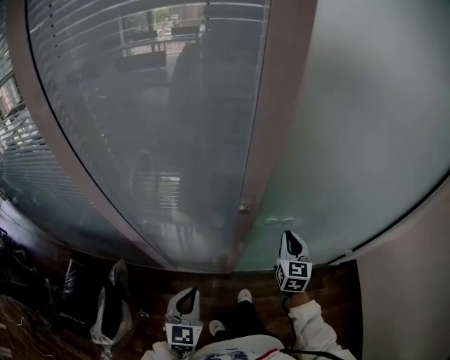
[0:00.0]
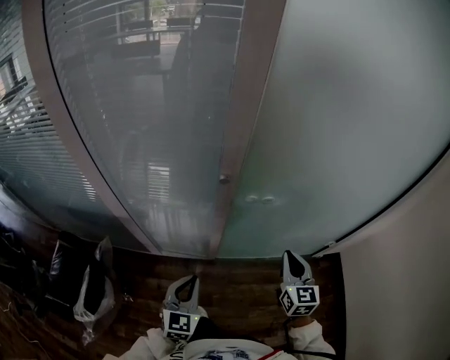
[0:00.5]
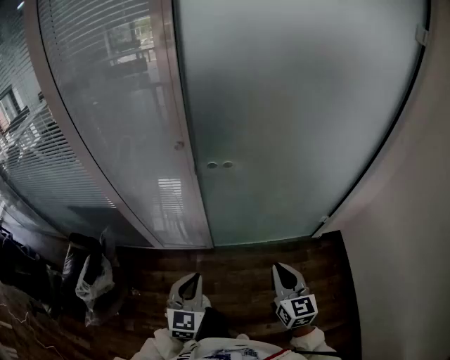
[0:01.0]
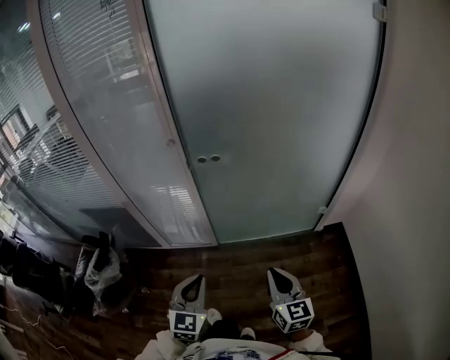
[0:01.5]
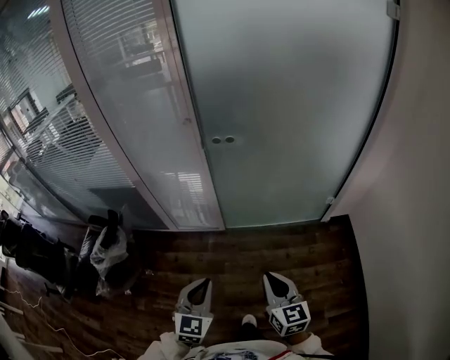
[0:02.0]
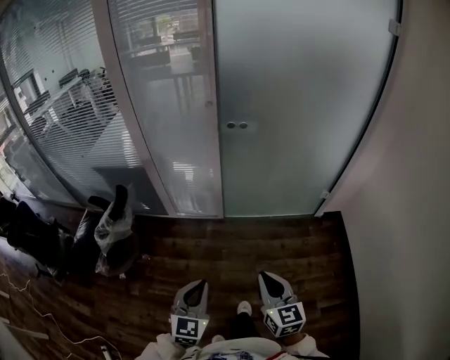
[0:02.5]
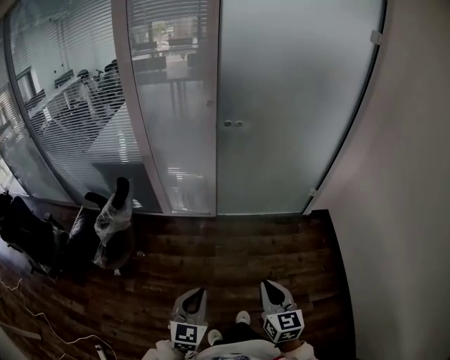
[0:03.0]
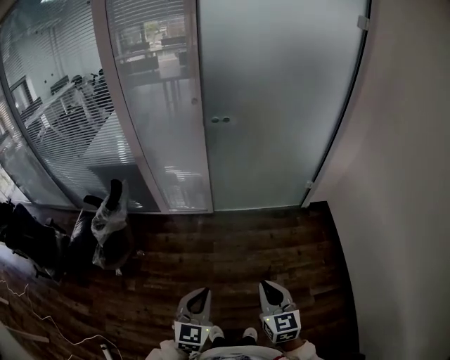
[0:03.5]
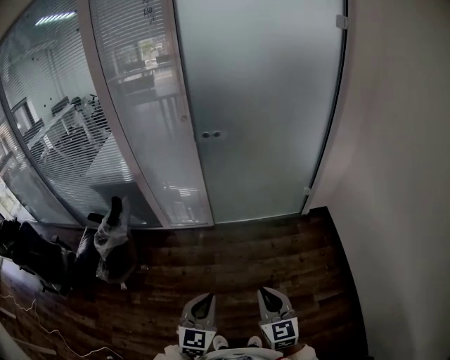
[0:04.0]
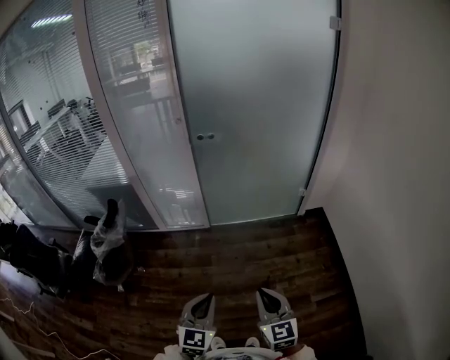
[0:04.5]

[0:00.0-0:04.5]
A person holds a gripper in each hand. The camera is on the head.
0:00.0 to 0:02.0: Both grippers are carried backward and to the right, some 50 cm. The right gripper turns by approximately 20 degrees.
0:02.0 to 0:04.5: The two grippers go roughly 25 cm backward.

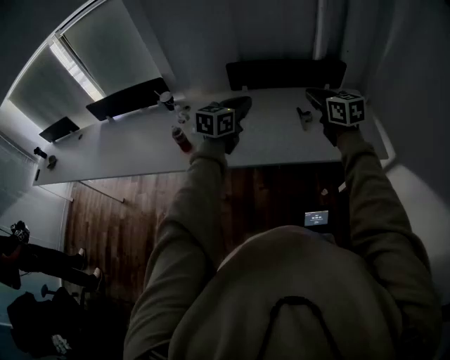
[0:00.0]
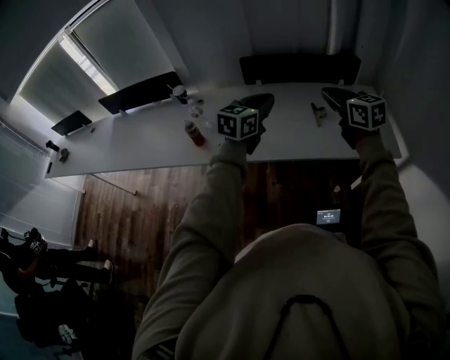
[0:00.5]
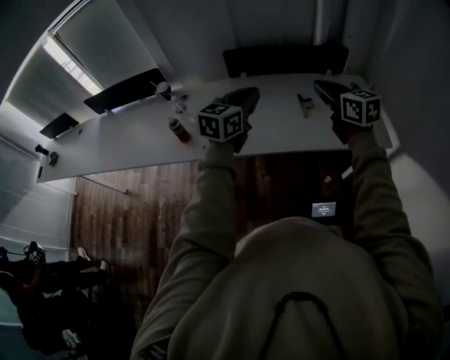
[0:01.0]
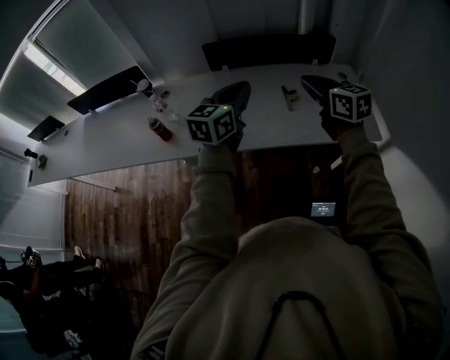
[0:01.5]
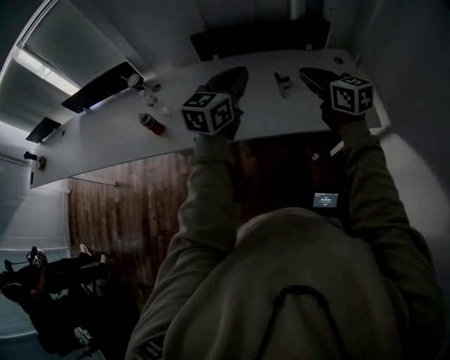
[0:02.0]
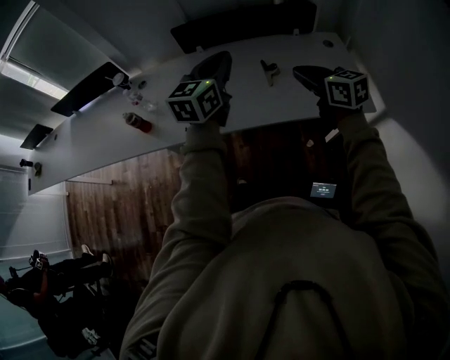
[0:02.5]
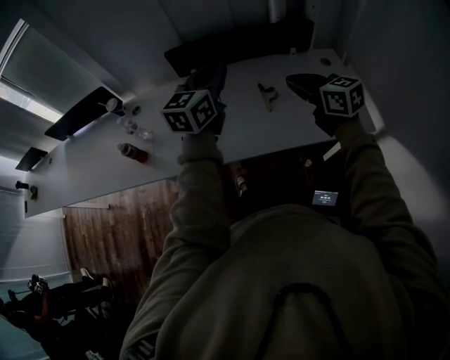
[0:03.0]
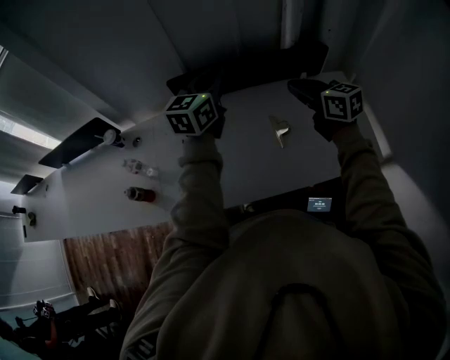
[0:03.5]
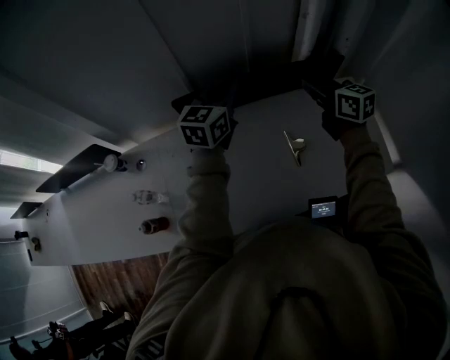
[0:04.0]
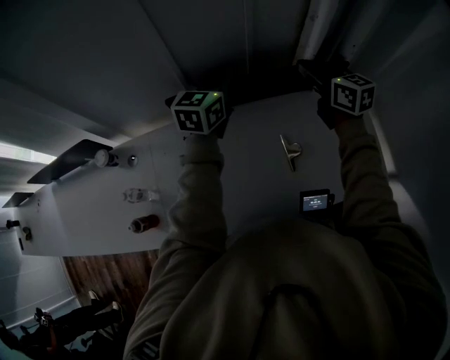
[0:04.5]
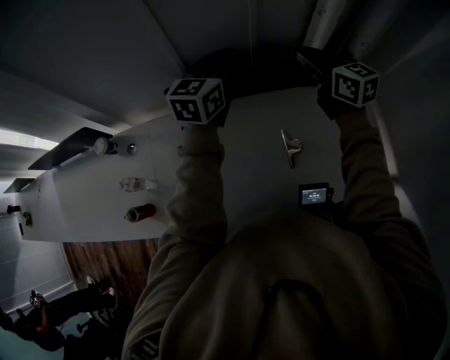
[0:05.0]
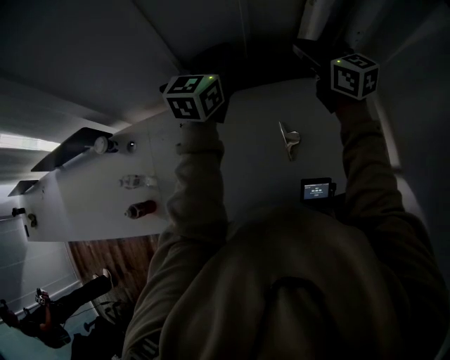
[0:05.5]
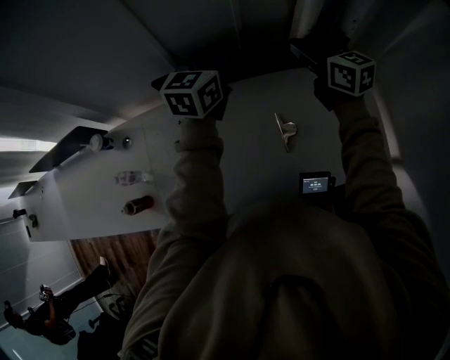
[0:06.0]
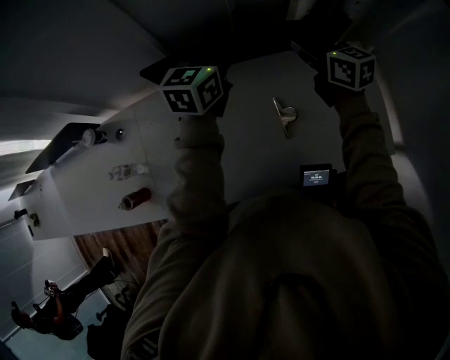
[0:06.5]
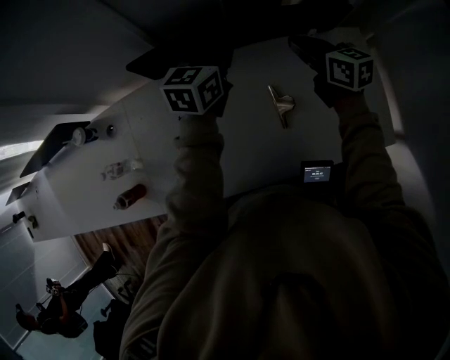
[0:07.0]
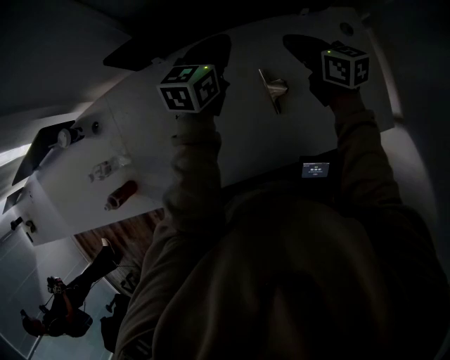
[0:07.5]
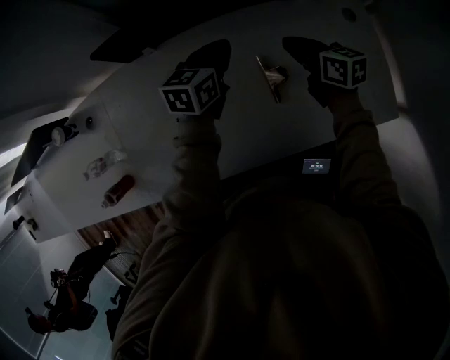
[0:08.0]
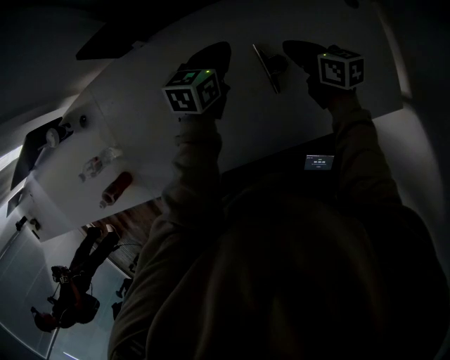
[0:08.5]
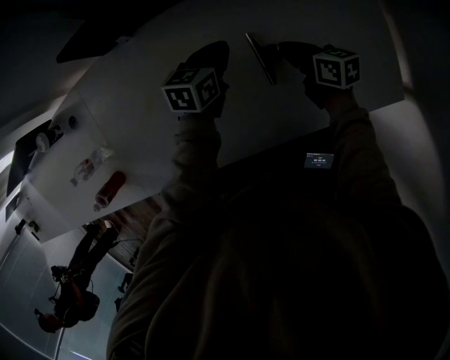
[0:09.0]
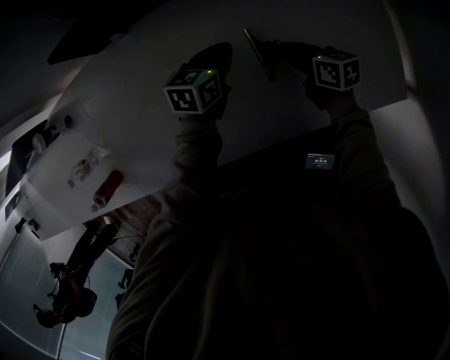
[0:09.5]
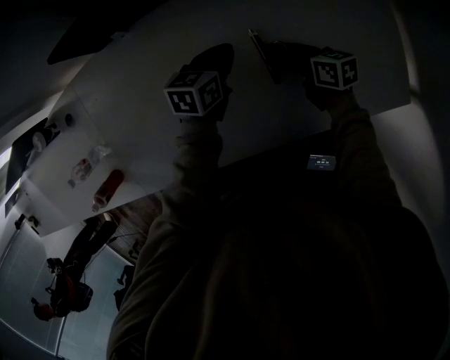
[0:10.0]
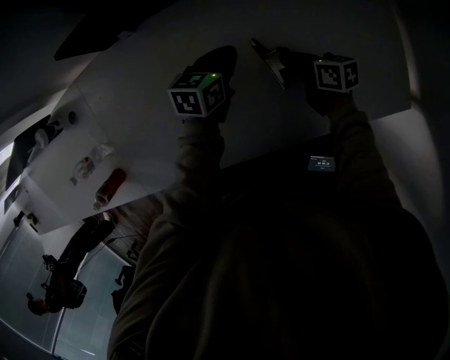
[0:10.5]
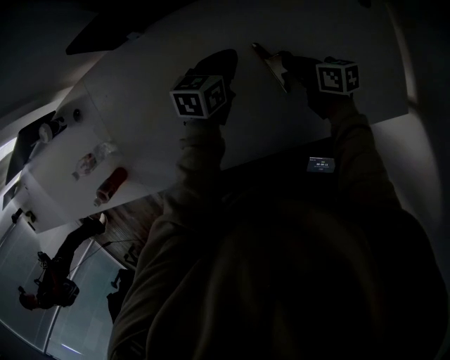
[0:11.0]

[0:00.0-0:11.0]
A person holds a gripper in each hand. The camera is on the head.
0:00.0 to 0:02.0: The two grippers go some 10 cm to the right.
0:02.0 to 0:03.5: Both grippers move forward, some 30 cm.
0:03.5 to 0:05.5: The two grippers go roughly 20 cm forward.
0:05.5 to 0:07.5: The two grippers go roughly 20 cm downward. The left gripper rotates about 20 degrees; the right gripper rotates about 20 degrees.
0:07.5 to 0:09.0: The right gripper goes approximately 20 cm downward and backward; the left gripper goes about 20 cm downward.
0:09.0 to 0:11.0: The right gripper opens, then closes again.

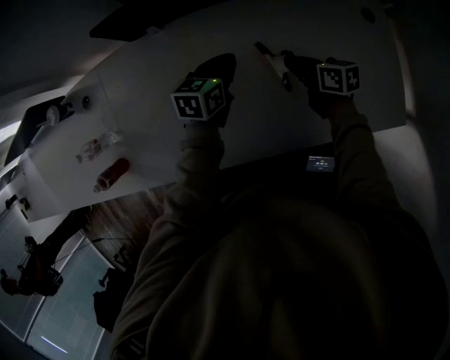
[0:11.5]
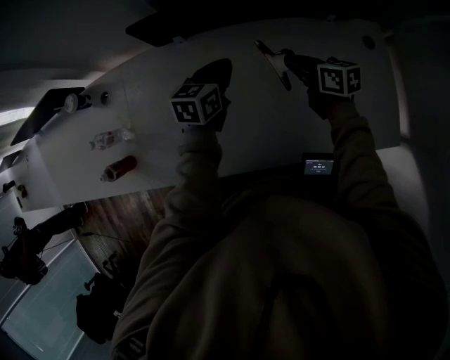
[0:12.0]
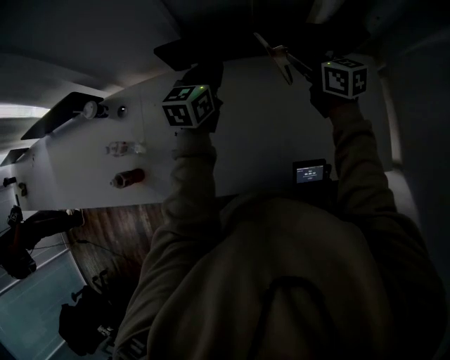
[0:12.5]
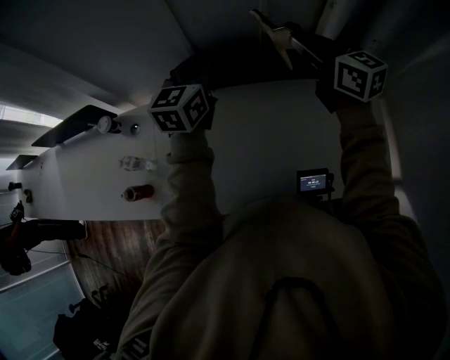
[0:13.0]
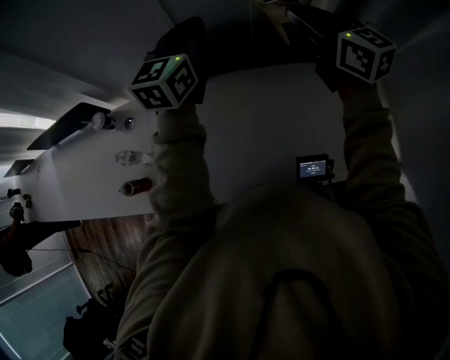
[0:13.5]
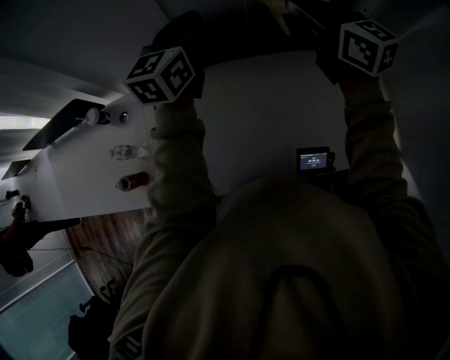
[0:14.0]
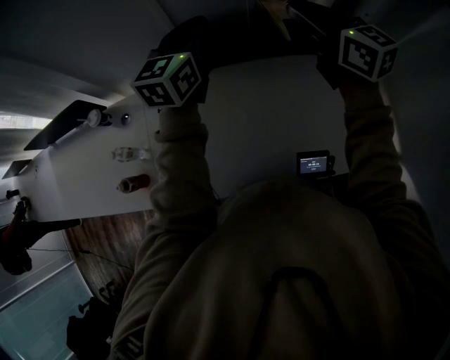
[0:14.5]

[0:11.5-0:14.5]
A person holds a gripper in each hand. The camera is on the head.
0:11.5 to 0:13.0: The two grippers go about 35 cm upward. The right gripper swivels approximately 50 degrees; the left gripper swivels about 40 degrees.
0:13.0 to 0:14.5: The grippers make only small movements.

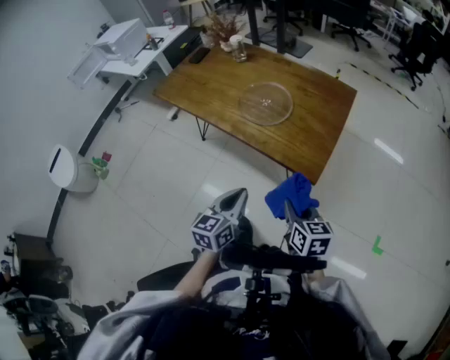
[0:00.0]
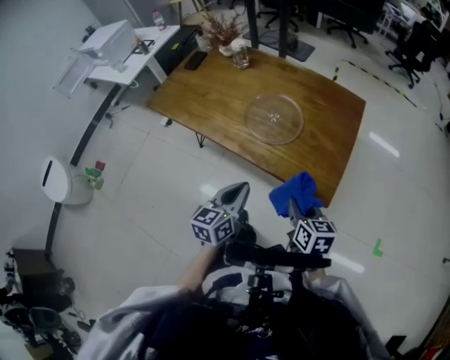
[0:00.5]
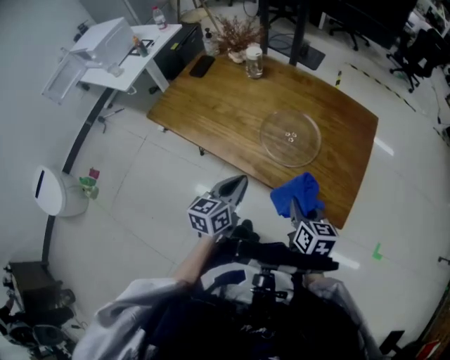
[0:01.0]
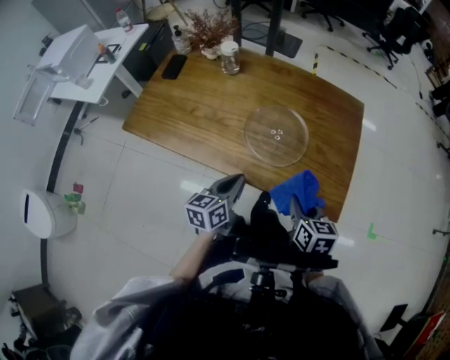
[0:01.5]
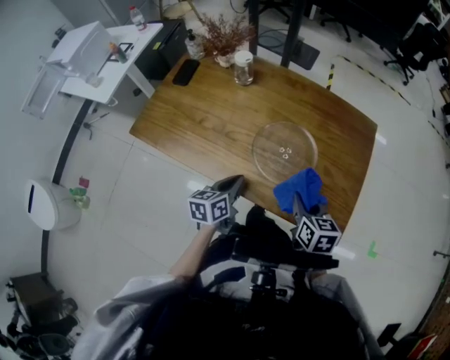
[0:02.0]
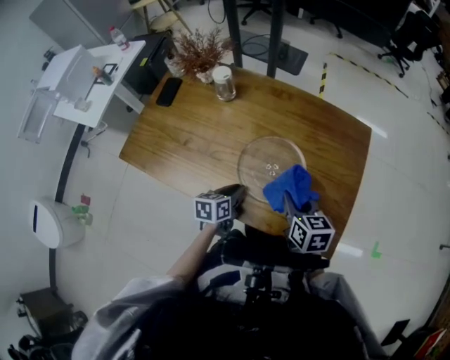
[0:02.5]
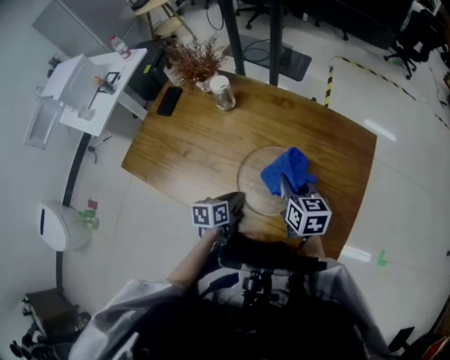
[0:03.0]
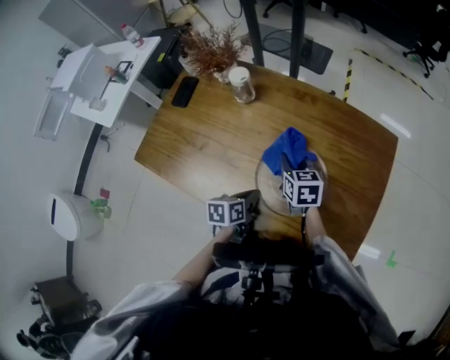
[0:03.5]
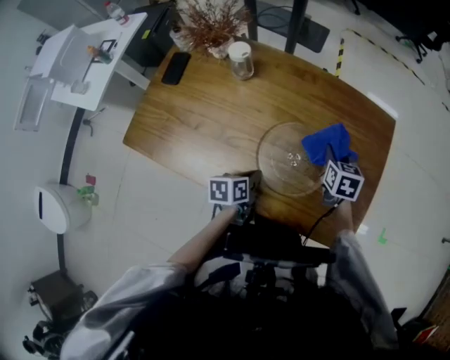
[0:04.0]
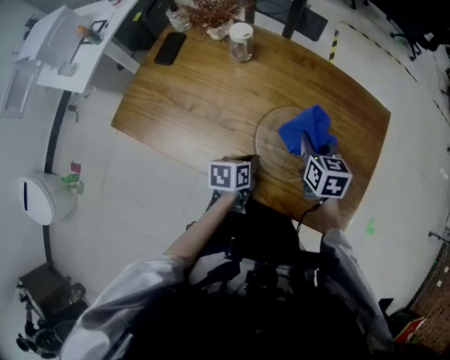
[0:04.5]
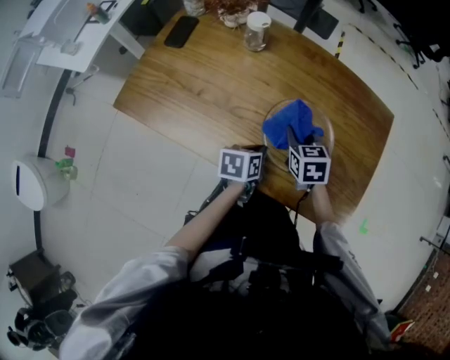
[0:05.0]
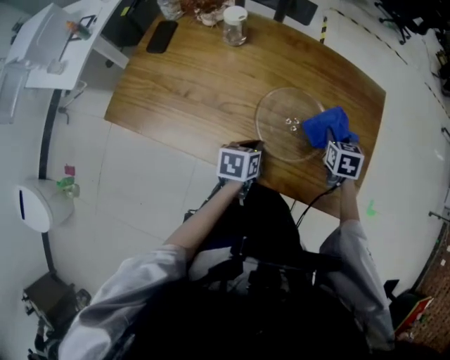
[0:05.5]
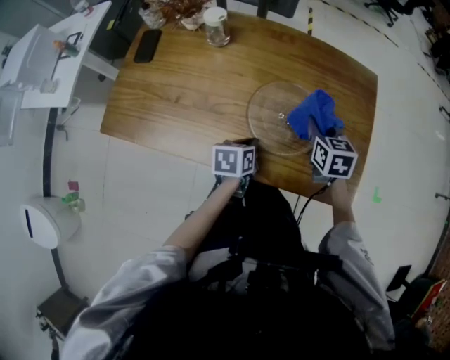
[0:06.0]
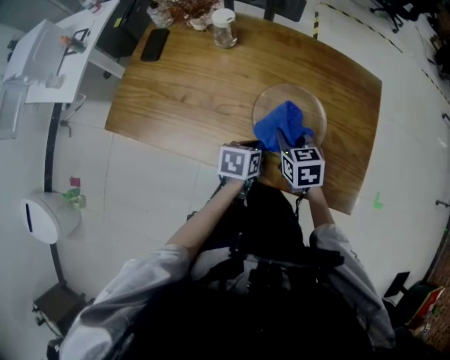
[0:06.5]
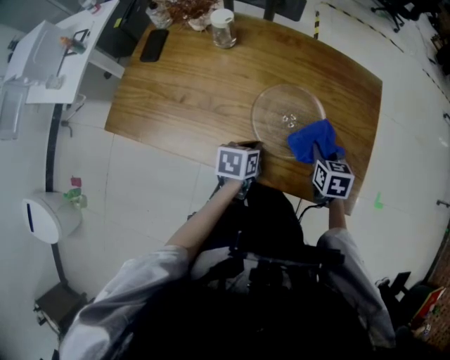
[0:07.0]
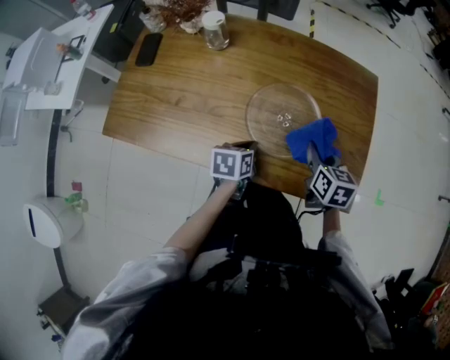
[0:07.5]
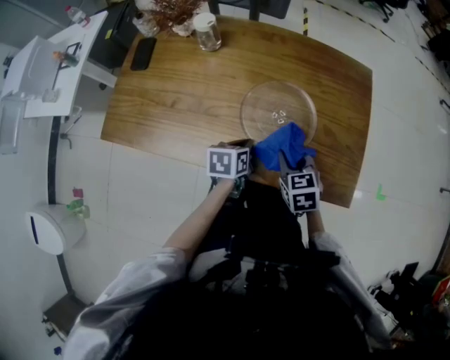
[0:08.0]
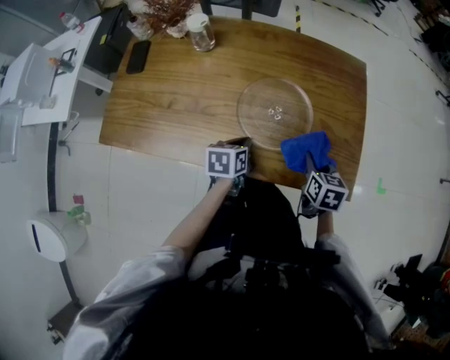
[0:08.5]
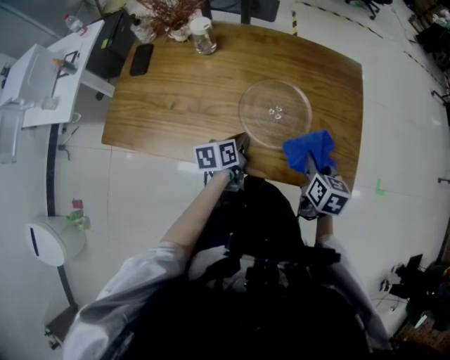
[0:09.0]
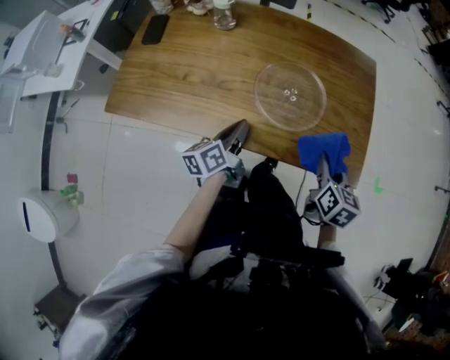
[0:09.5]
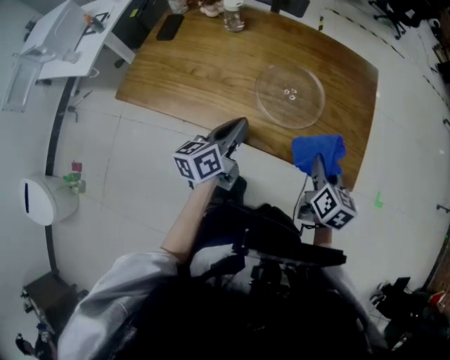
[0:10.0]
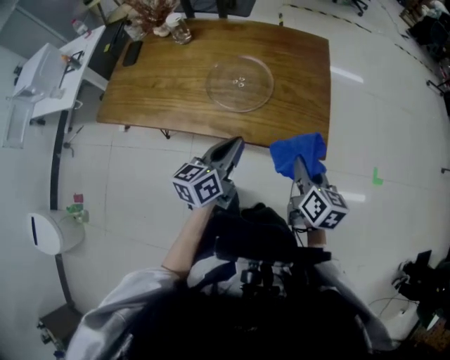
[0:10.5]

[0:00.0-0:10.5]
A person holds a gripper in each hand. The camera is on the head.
0:00.0 to 0:02.0: Both grippers move forward and to the left, about 35 cm. The left gripper turns by some 20 degrees.
0:02.0 to 0:04.0: The left gripper moves forward and downward, approximately 10 cm, and swivels approximately 20 degrees. The right gripper travels forward by about 25 cm.
0:04.0 to 0:06.5: The right gripper moves left and right over roughly 15 cm, changing direction 2 times.
0:06.5 to 0:08.5: The right gripper goes left and right, some 15 cm each way, reversing 2 times, and rotates roughly 30 degrees.
0:08.5 to 0:10.5: The right gripper heads backward, to the right and upward, covering roughly 20 cm, and changes its angle by about 30 degrees. The left gripper is displaced upward, backward and to the right by approximately 25 cm, and points its fingers about 30 degrees further upward.
